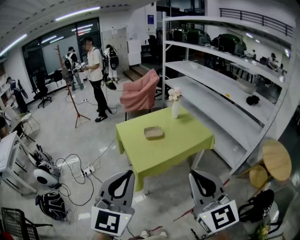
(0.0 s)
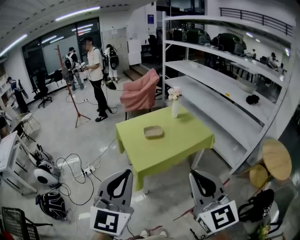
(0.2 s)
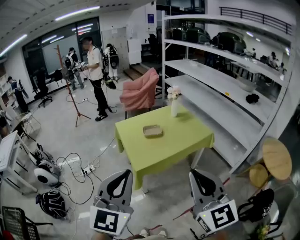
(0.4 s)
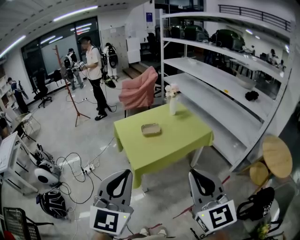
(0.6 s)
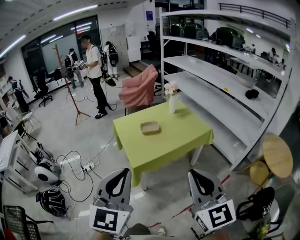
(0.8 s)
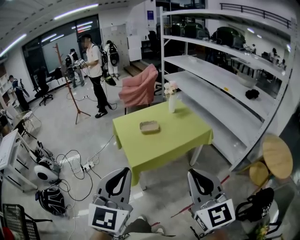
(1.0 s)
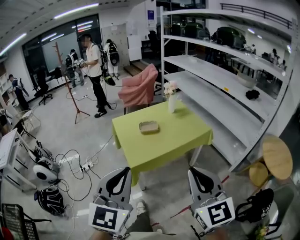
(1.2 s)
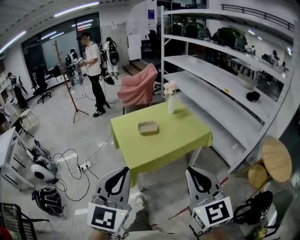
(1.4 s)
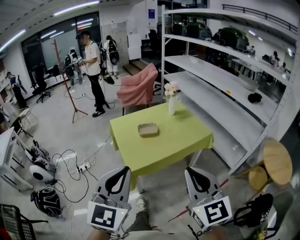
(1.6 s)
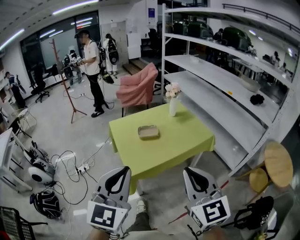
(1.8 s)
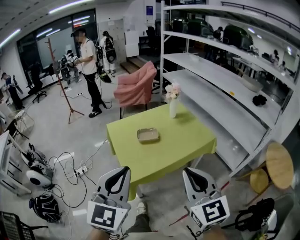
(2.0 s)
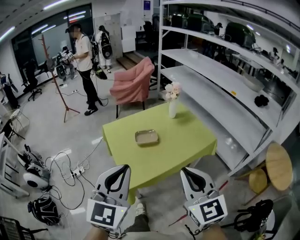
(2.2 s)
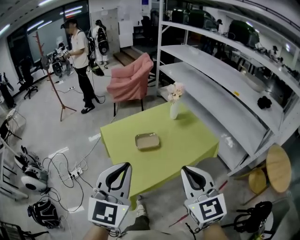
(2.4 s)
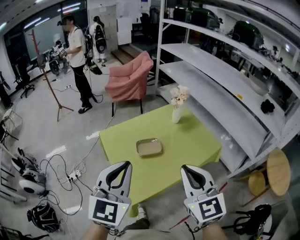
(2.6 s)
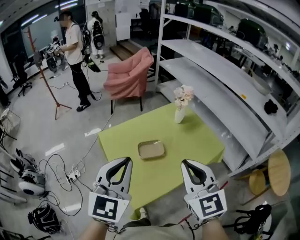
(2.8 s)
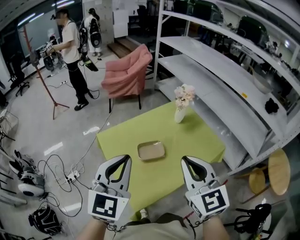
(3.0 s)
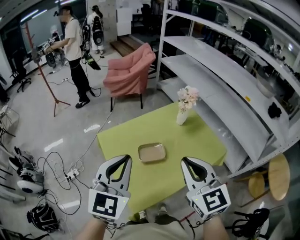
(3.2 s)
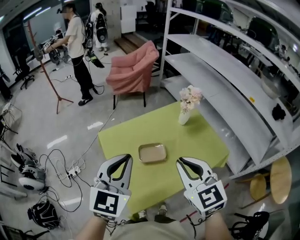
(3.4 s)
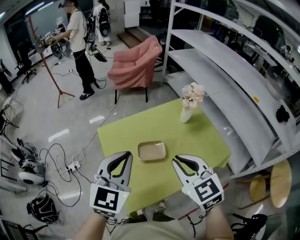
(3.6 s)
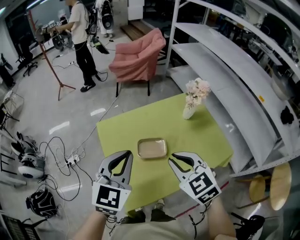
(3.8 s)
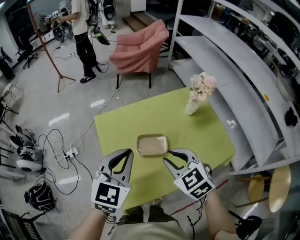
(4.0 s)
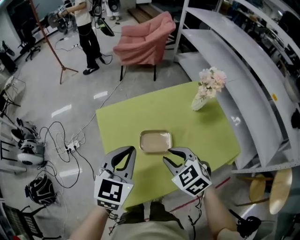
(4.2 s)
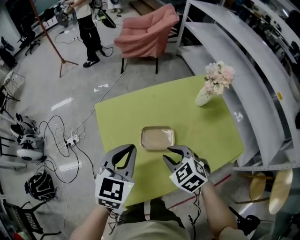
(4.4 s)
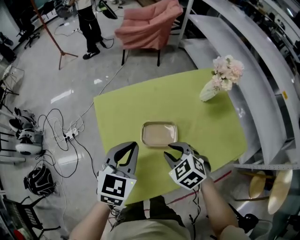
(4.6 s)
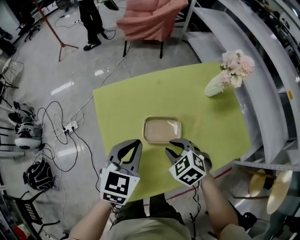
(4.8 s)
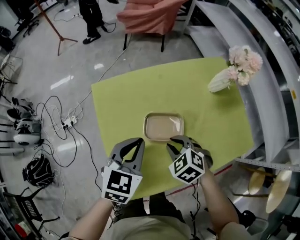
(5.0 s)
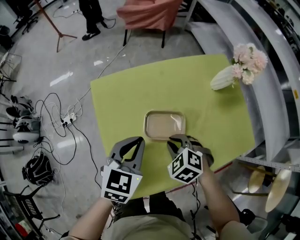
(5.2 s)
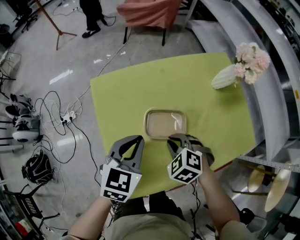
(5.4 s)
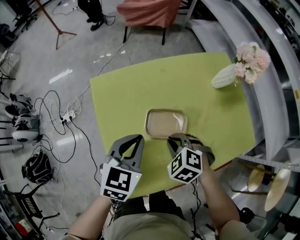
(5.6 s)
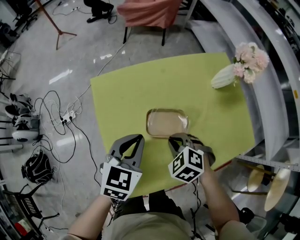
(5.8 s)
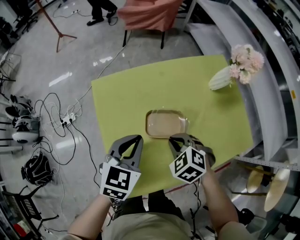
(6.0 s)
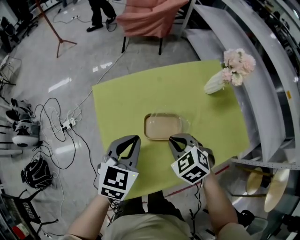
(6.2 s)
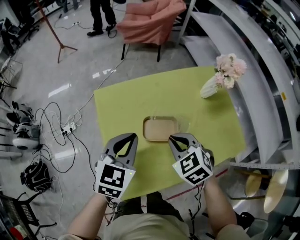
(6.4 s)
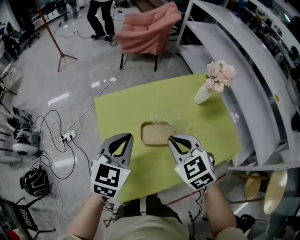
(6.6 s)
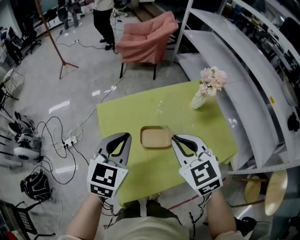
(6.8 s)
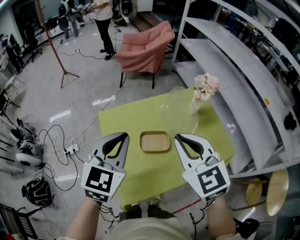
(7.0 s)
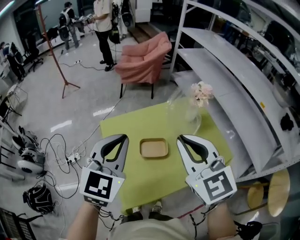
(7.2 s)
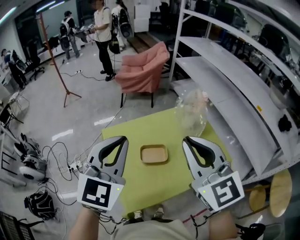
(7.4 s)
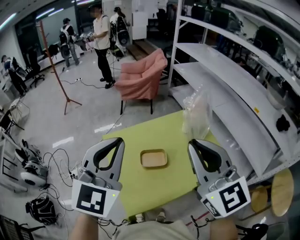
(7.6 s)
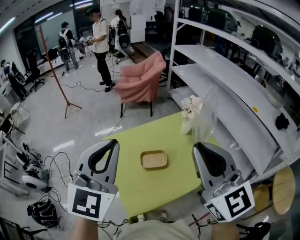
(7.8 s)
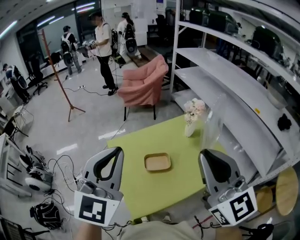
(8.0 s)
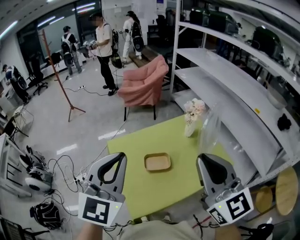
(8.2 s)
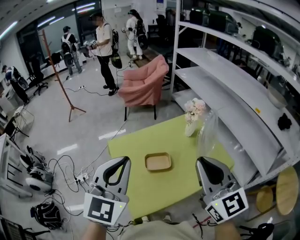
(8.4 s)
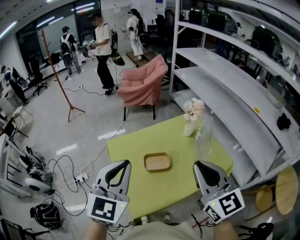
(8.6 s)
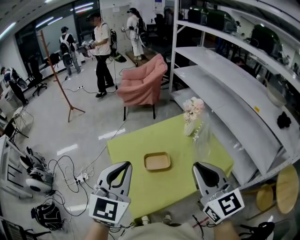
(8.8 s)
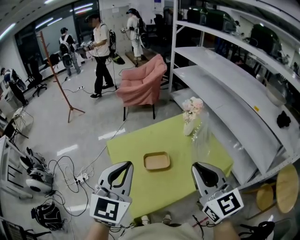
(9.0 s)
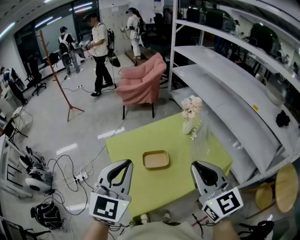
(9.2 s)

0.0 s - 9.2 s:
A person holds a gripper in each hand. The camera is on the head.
0.0 s - 1.6 s: The right gripper goes some 10 cm forward and downward. The left gripper travels forward by roughly 5 cm.
1.6 s - 3.0 s: Both grippers travel together forward, some 35 cm.
3.0 s - 4.6 s: The left gripper travels downward and forward by roughly 25 cm, and swivels about 20 degrees; the right gripper travels downward by approximately 30 cm, tilts its fingers about 40 degrees downward, and opens.
4.6 s - 6.2 s: The right gripper closes.
6.2 s - 7.6 s: Both grippers move upward, some 40 cm. The left gripper points its fingers approximately 30 degrees further upward. The right gripper angles its fingers upward, by about 60 degrees.
7.6 s - 9.2 s: Both grippers move downward, some 10 cm.

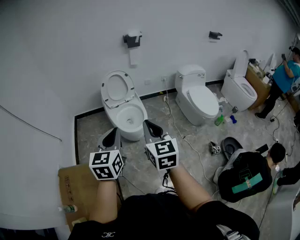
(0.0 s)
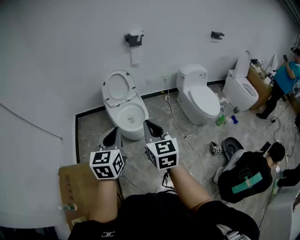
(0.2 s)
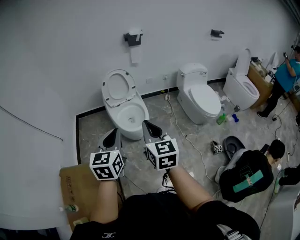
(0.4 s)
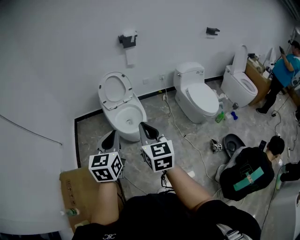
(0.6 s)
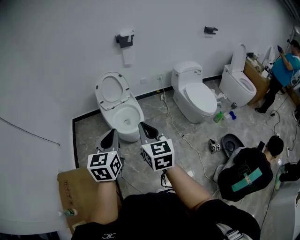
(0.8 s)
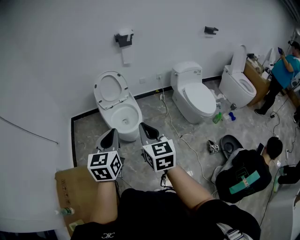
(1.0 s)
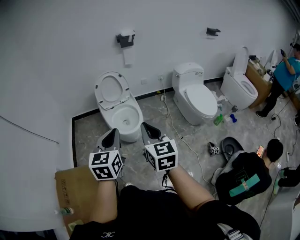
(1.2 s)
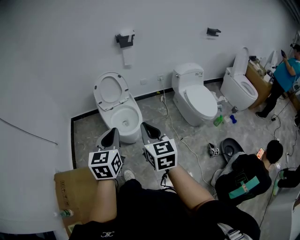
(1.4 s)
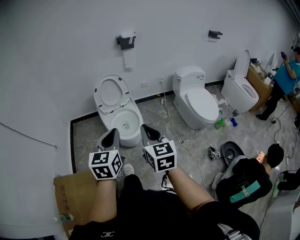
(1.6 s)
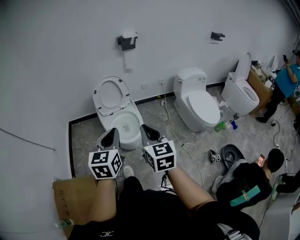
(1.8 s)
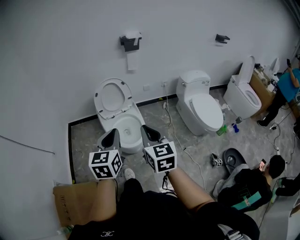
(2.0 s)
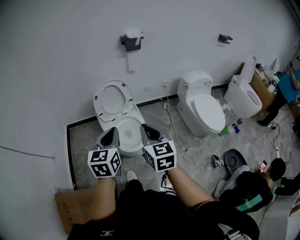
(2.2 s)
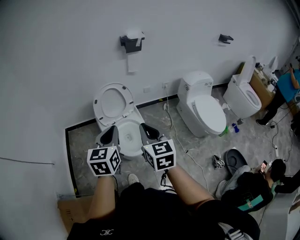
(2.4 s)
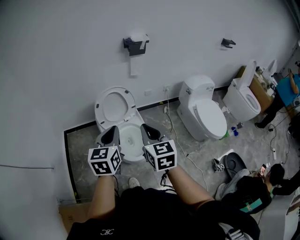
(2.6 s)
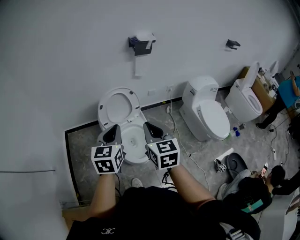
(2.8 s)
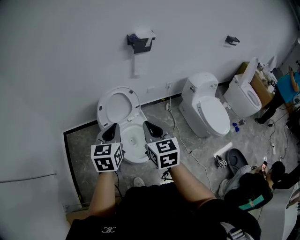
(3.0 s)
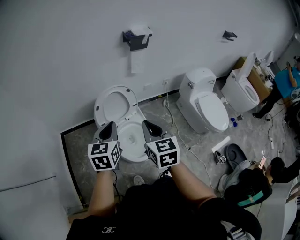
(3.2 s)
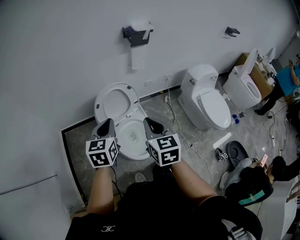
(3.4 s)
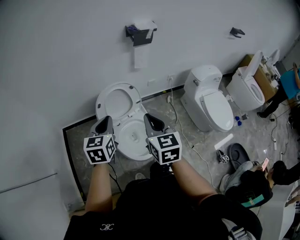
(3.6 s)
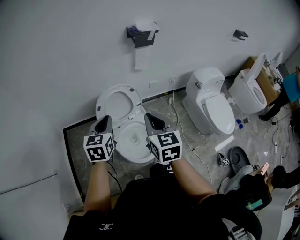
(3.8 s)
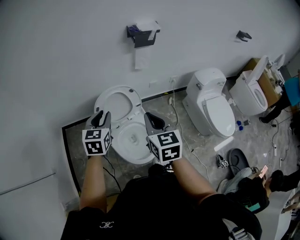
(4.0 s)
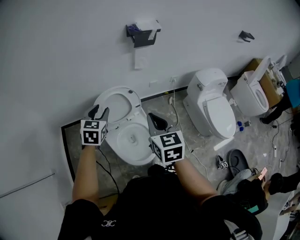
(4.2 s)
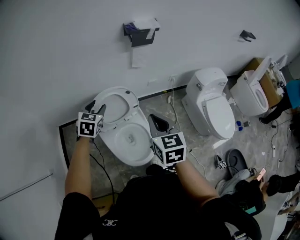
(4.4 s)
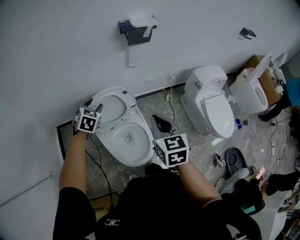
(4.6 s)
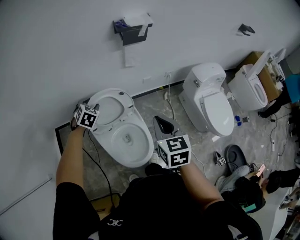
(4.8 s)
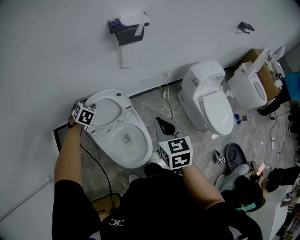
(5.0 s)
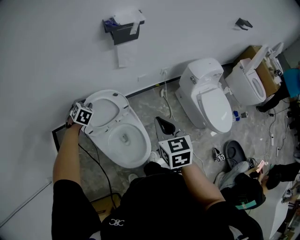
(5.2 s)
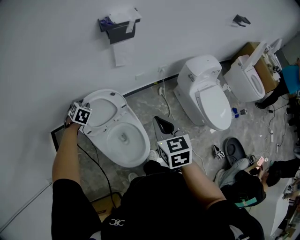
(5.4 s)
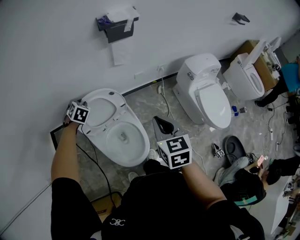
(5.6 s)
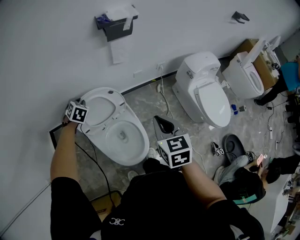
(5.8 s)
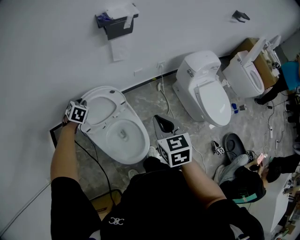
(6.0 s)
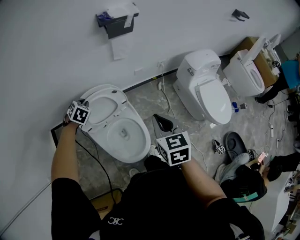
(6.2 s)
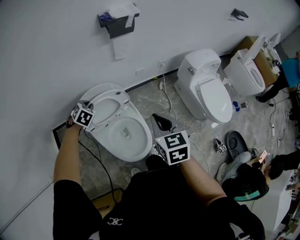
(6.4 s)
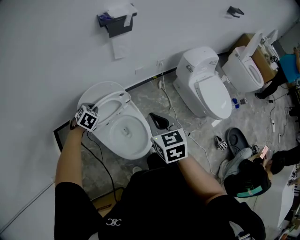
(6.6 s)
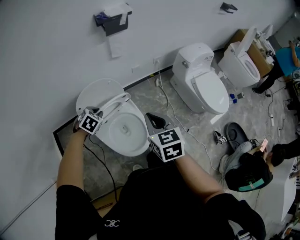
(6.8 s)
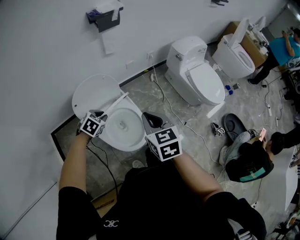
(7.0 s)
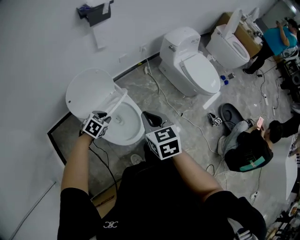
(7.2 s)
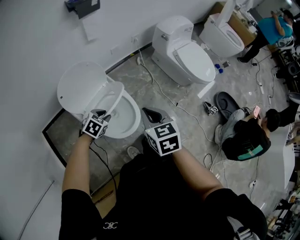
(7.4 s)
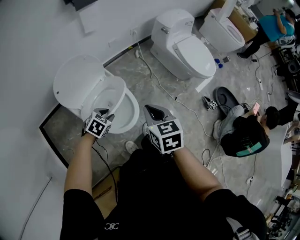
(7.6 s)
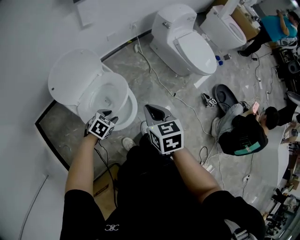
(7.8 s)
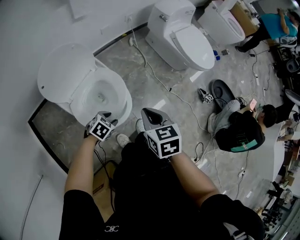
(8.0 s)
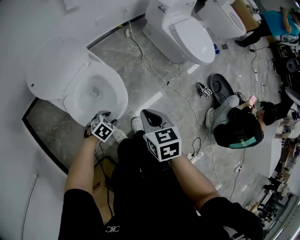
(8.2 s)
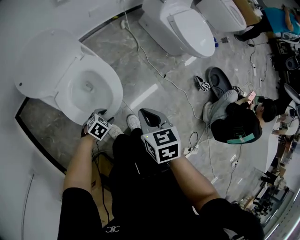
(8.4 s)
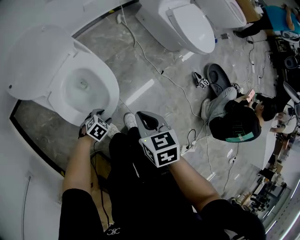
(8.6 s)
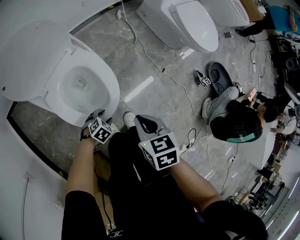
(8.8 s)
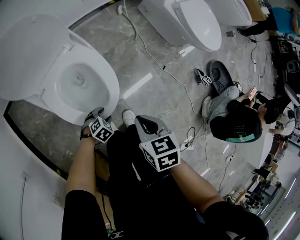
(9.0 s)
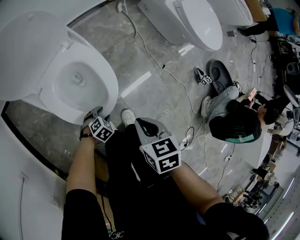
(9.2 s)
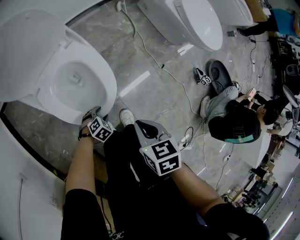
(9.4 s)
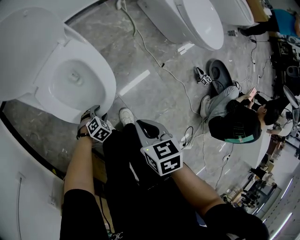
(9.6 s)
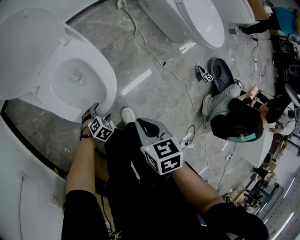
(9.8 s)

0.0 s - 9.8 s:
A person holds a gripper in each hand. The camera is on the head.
0.0 s - 1.4 s: Both grippers move to the right and forward, approximately 10 cm.
1.4 s - 2.8 s: The two grippers go some 40 cm forward and to the left.
2.8 s - 4.2 s: The two grippers go roughly 20 cm forward. The left gripper opens.
4.2 s - 5.6 s: The left gripper shifts roughly 25 cm forward and downward, and rotates roughly 30 degrees, while the right gripper is displaced to the right and downward by roughly 10 cm.
5.6 s - 7.0 s: The right gripper ends up about 15 cm from where it was. Meanwhile the left gripper shifts by approximately 25 cm, and turns by about 30 degrees.
7.0 s - 8.4 s: Both grippers move downward, about 25 cm. The left gripper changes its angle by about 20 degrees, and opens its fingers. The right gripper swivels about 30 degrees.
8.4 s - 9.8 s: The two grippers go approximately 15 cm downward.

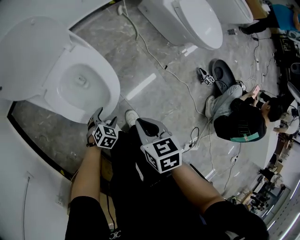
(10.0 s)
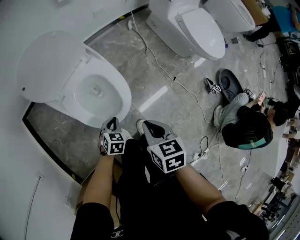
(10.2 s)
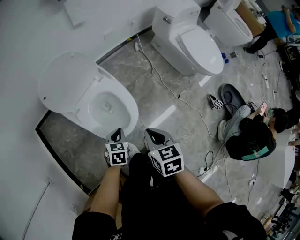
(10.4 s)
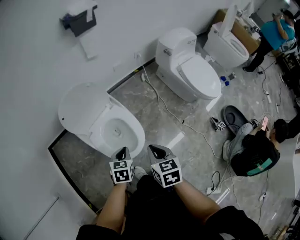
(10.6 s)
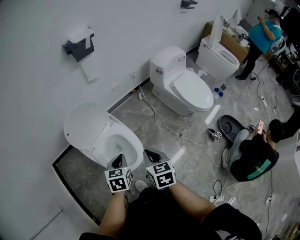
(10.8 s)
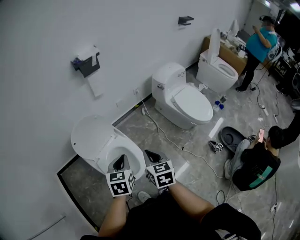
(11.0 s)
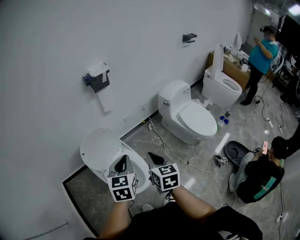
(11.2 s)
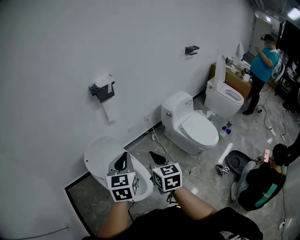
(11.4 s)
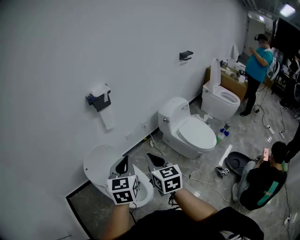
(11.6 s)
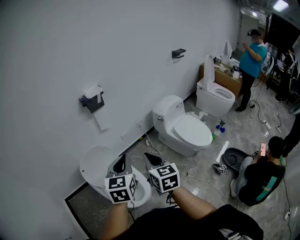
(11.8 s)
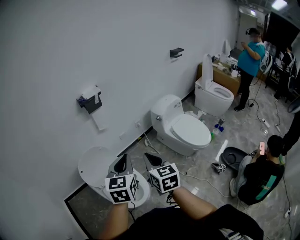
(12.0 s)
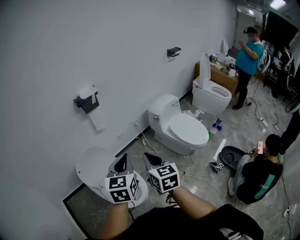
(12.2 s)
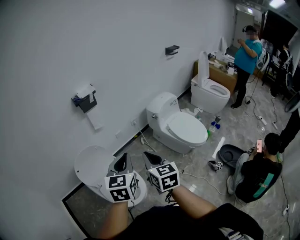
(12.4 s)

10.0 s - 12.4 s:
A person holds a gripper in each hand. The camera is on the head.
10.0 s - 11.2 s: The left gripper heads upward, covering approximately 60 cm, tilts its fingers approximately 40 degrees upward, and closes up; the right gripper heads upward, covering approximately 35 cm, and points its fingers some 30 degrees further upward.
11.2 s - 12.4 s: The left gripper is displaced to the right and upward by some 10 cm; the right gripper heads upward and to the right, covering roughly 10 cm.

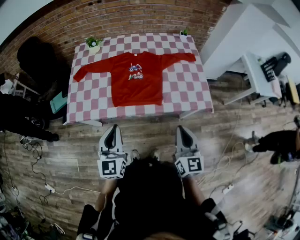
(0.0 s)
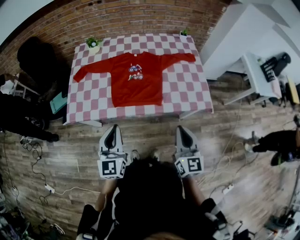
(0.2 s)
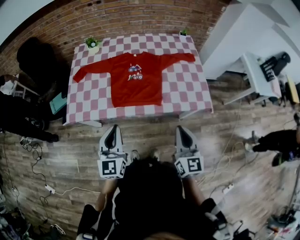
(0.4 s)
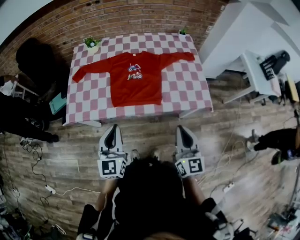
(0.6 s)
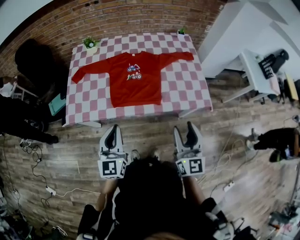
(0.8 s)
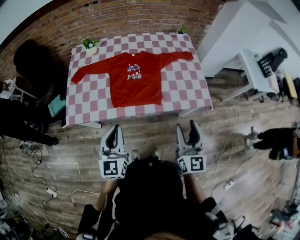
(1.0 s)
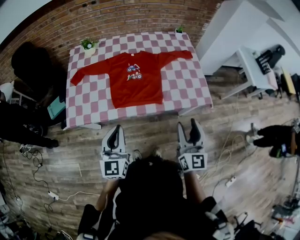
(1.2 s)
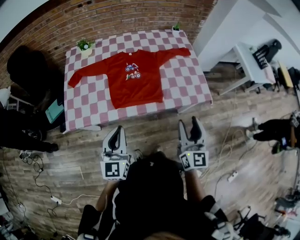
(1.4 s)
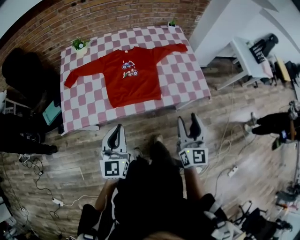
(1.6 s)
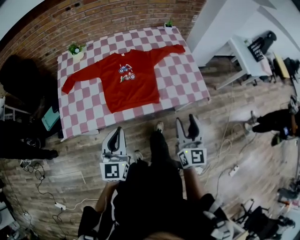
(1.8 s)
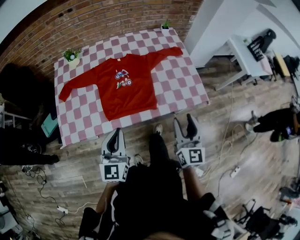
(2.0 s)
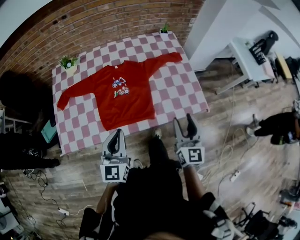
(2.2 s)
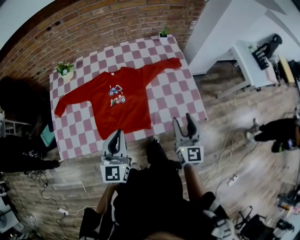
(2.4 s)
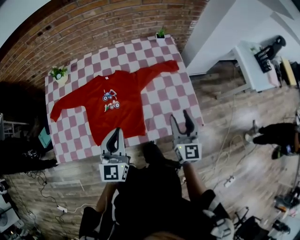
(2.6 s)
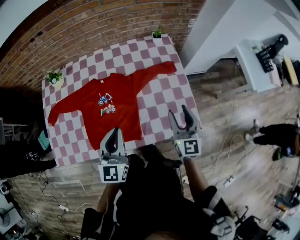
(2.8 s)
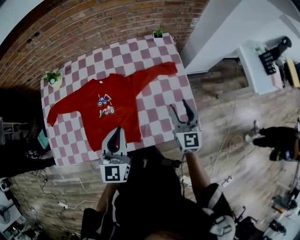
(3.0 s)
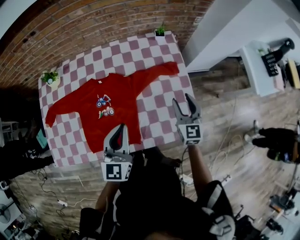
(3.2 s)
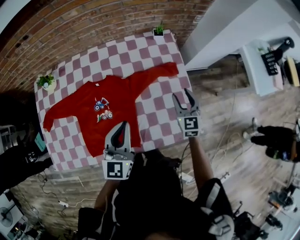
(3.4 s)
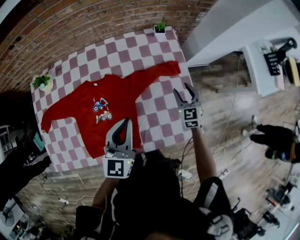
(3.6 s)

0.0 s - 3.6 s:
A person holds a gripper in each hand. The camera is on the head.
0.0 s - 1.8 s: The right gripper opens its fingers.
1.8 s - 3.6 s: Both grippers are carried forward, roughly 50 cm. The right gripper turns by about 30 degrees.
